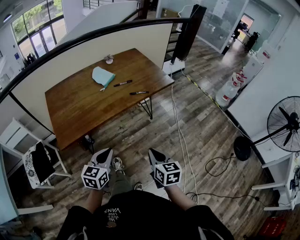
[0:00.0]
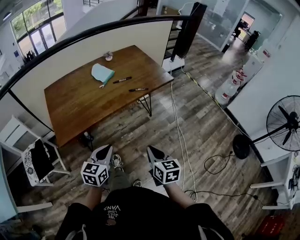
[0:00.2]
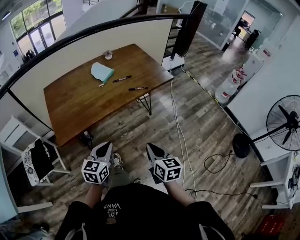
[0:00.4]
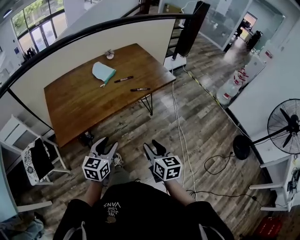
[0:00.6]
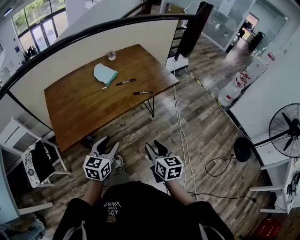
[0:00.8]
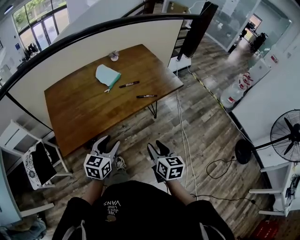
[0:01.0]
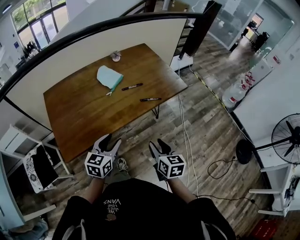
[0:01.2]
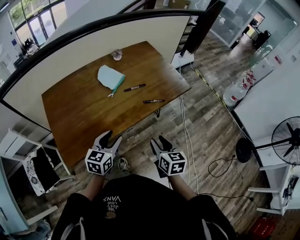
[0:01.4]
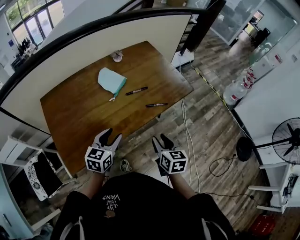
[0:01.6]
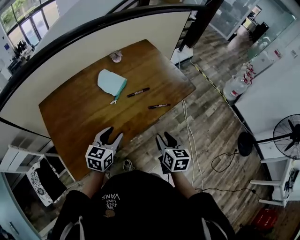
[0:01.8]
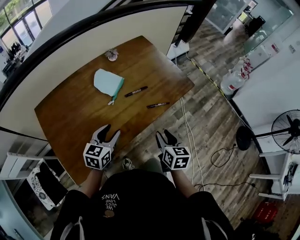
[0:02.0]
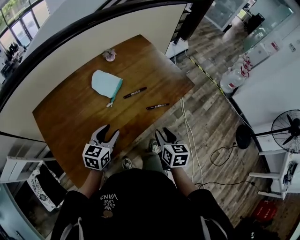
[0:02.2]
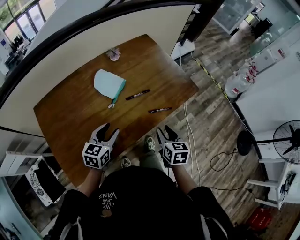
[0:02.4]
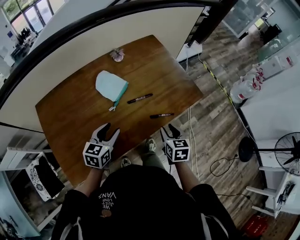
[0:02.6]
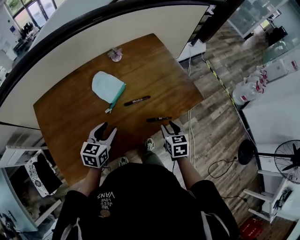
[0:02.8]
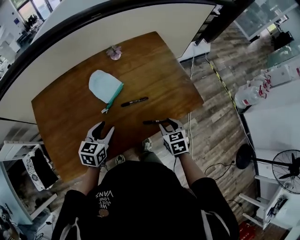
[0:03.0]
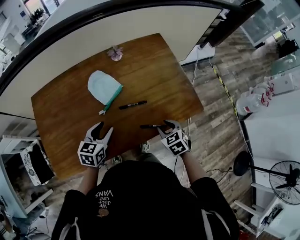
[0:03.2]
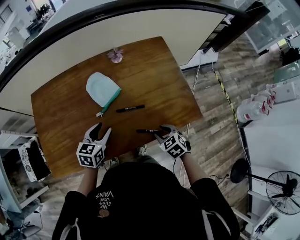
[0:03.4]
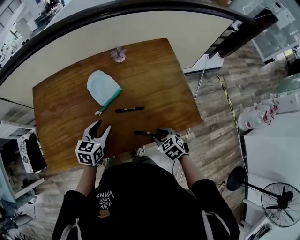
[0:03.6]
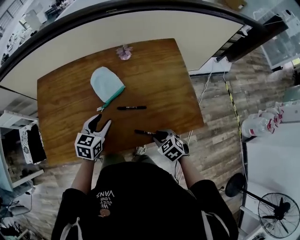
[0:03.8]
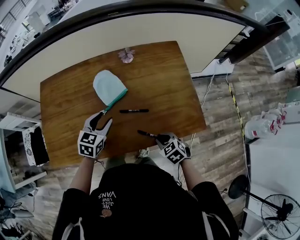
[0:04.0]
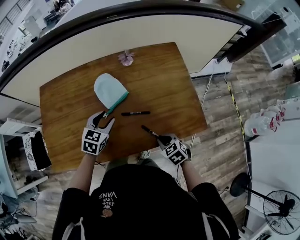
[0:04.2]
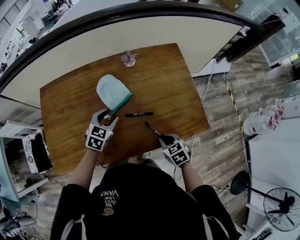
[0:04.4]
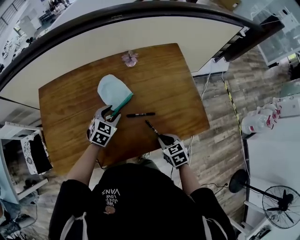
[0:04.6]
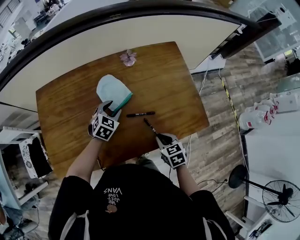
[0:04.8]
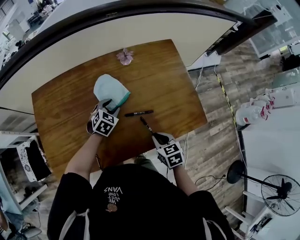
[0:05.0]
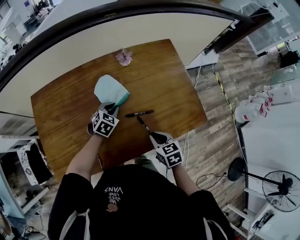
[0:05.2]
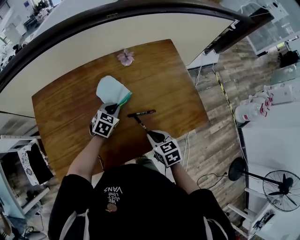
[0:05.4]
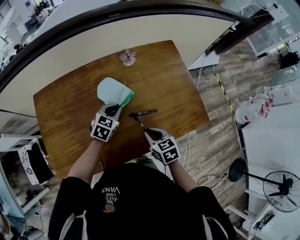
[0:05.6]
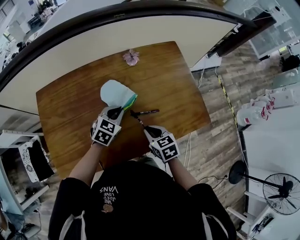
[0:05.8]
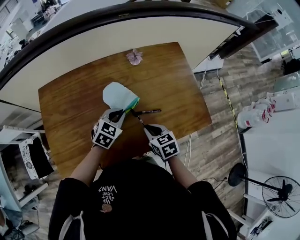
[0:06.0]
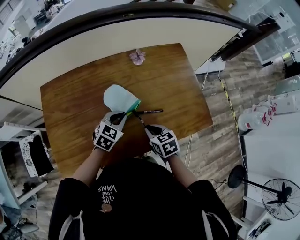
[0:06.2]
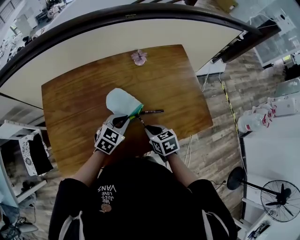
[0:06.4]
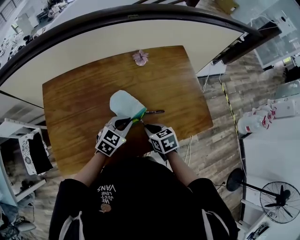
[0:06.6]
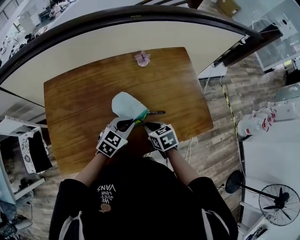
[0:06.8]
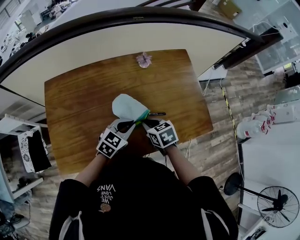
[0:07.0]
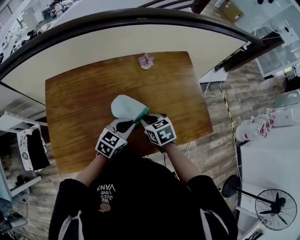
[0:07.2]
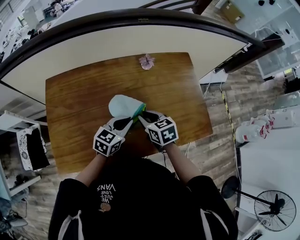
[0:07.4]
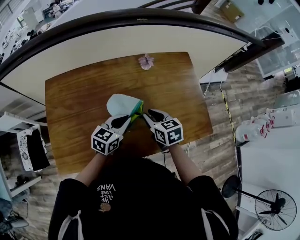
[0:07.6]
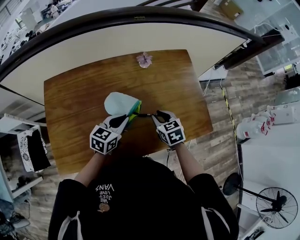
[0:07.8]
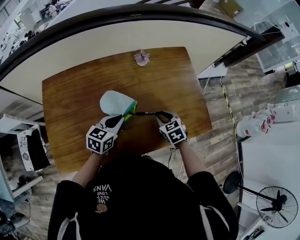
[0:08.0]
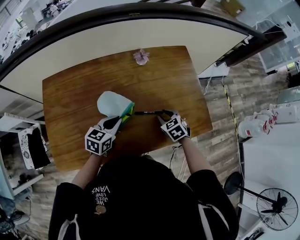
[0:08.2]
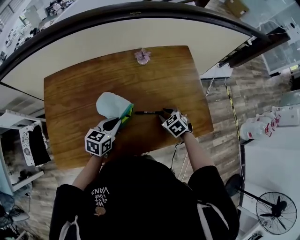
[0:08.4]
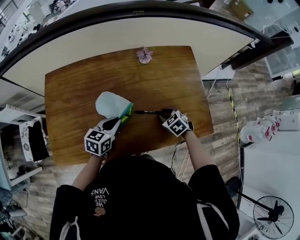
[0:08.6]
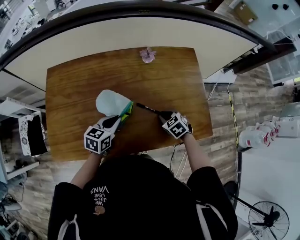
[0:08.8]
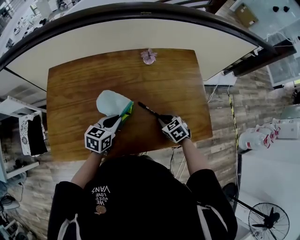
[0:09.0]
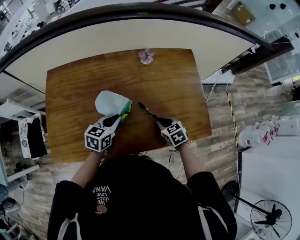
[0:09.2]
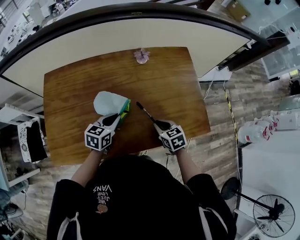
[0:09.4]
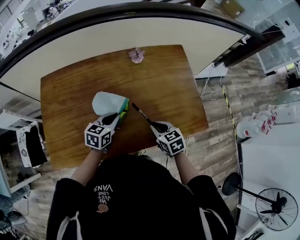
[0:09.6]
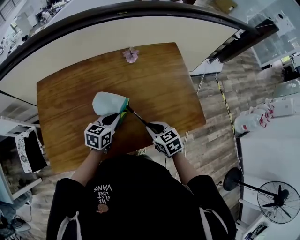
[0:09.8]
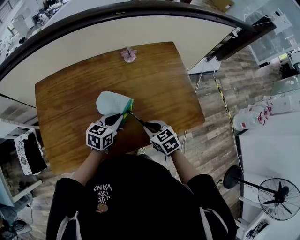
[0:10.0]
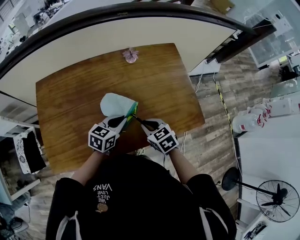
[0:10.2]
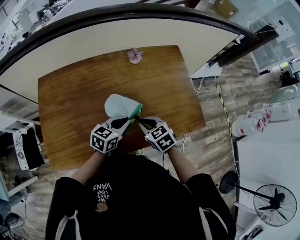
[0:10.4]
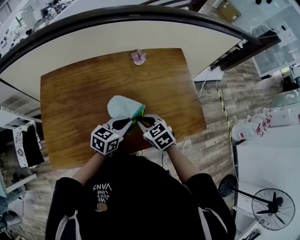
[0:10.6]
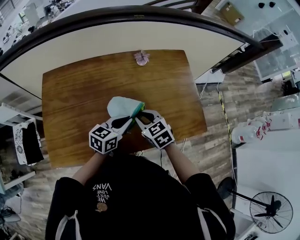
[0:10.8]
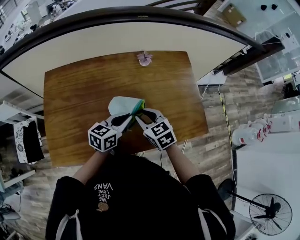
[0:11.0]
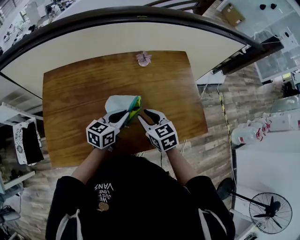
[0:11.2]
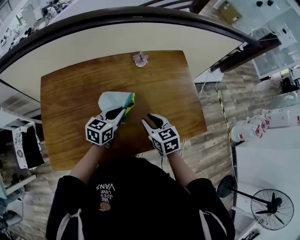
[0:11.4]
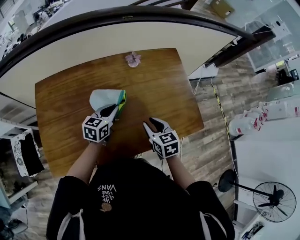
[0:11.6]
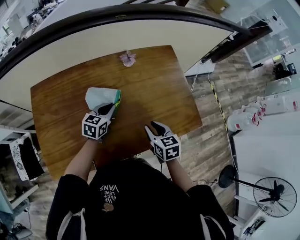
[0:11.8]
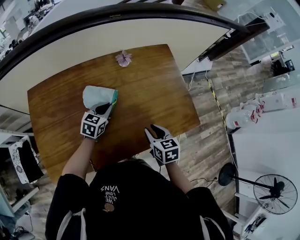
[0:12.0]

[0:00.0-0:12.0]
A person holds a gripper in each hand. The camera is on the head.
0:00.0 to 0:01.6: The two grippers go roughly 25 cm forward. The right gripper opens up, while the left gripper opens up.
0:01.6 to 0:03.0: The right gripper shifts about 25 cm forward and downward, and swivels roughly 30 degrees; the left gripper travels forward by approximately 15 cm.
0:03.0 to 0:04.4: The right gripper changes its angle by some 30 degrees, and closes up. The left gripper moves about 10 cm, and changes its angle by roughly 20 degrees.
0:04.4 to 0:06.0: The left gripper closes up, while the right gripper moves to the left and upward, roughly 15 cm.
0:06.0 to 0:07.6: The right gripper goes some 5 cm forward. The left gripper moves about 5 cm, and changes its angle by approximately 30 degrees.
0:07.6 to 0:09.0: The right gripper moves downward and to the right, approximately 15 cm, and changes its angle by some 30 degrees; the left gripper ends up some 5 cm from where it was.
0:09.0 to 0:10.4: The right gripper is displaced upward and to the left by some 10 cm. The left gripper moves to the right, approximately 5 cm.
0:10.4 to 0:12.0: The left gripper is displaced forward and to the left by approximately 10 cm. The right gripper goes about 5 cm to the right, and swivels about 30 degrees.

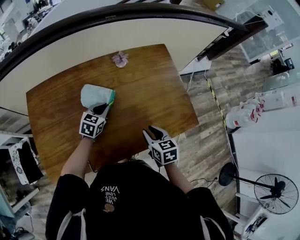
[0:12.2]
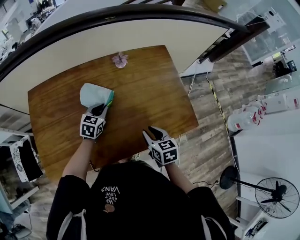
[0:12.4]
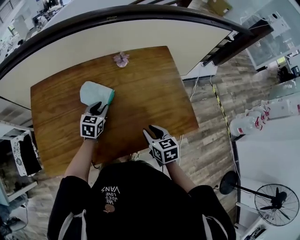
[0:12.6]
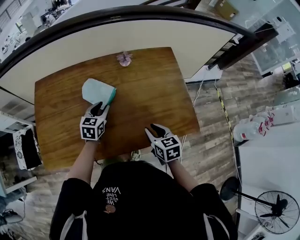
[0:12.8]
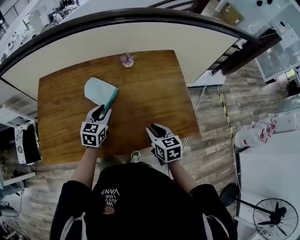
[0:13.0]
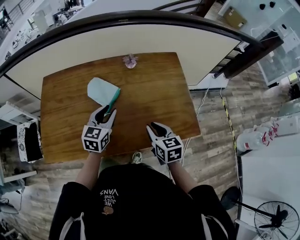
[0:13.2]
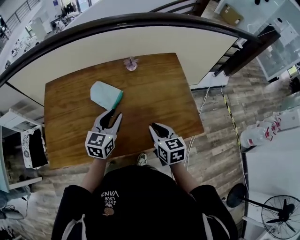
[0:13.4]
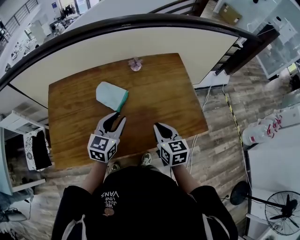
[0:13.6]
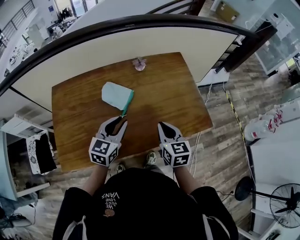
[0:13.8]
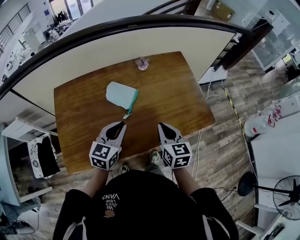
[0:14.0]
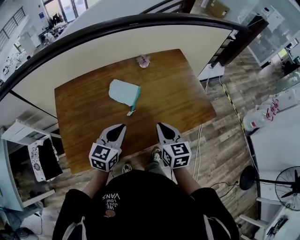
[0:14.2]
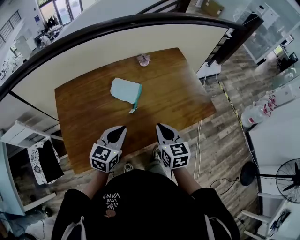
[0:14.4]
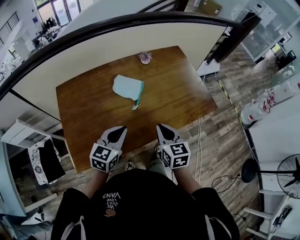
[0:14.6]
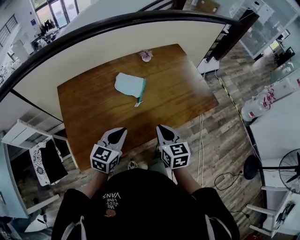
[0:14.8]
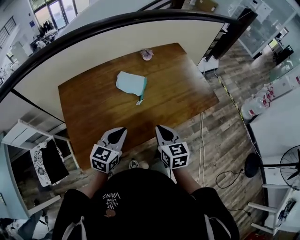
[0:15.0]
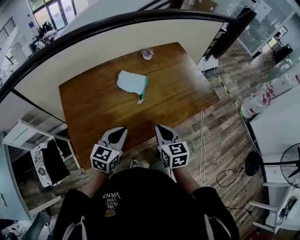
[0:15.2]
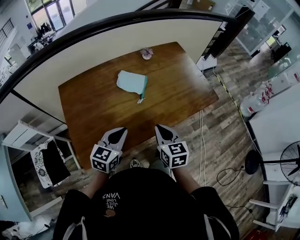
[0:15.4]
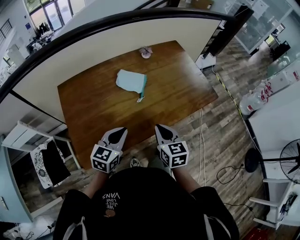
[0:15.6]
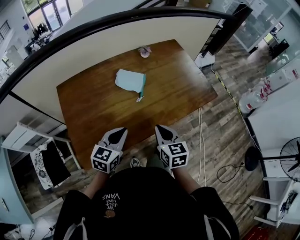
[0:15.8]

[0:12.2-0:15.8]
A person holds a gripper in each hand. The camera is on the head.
0:12.2 to 0:14.0: The right gripper goes some 10 cm upward. Meanwhile the left gripper goes approximately 20 cm backward and upward.
0:14.0 to 0:15.8: Both grippers travel together backward and to the left, some 15 cm.

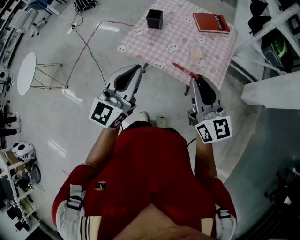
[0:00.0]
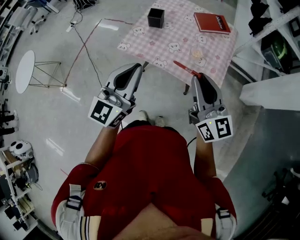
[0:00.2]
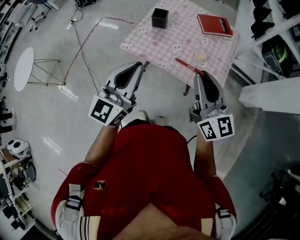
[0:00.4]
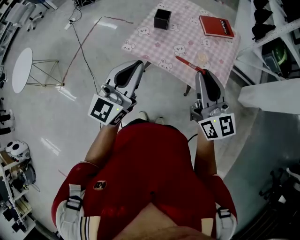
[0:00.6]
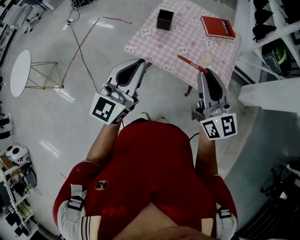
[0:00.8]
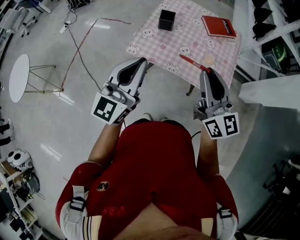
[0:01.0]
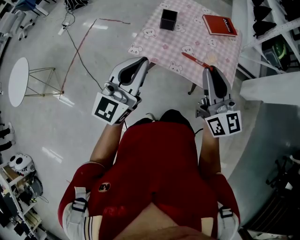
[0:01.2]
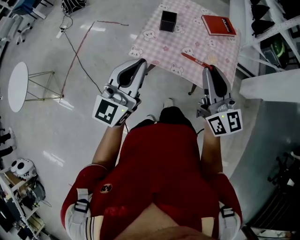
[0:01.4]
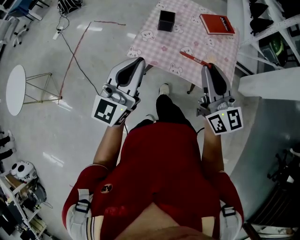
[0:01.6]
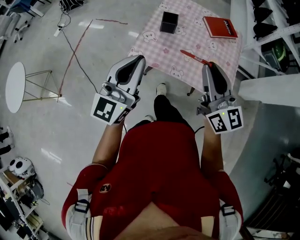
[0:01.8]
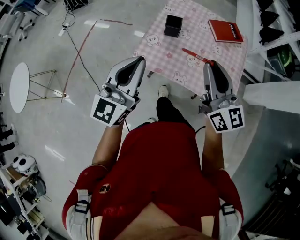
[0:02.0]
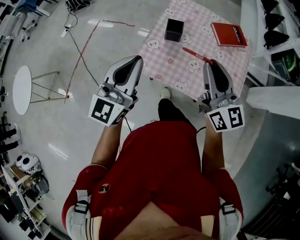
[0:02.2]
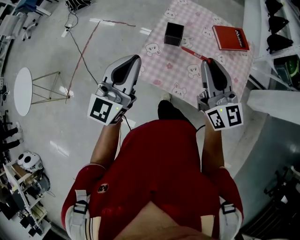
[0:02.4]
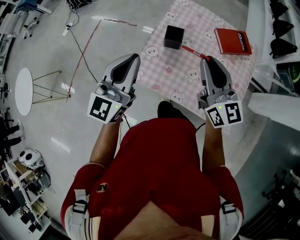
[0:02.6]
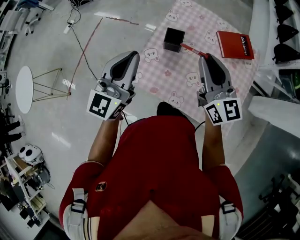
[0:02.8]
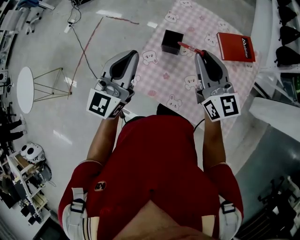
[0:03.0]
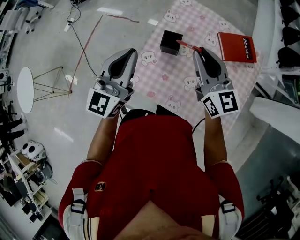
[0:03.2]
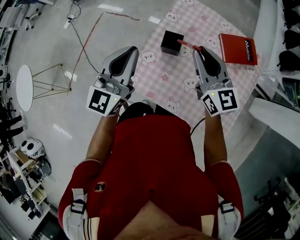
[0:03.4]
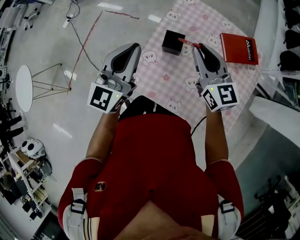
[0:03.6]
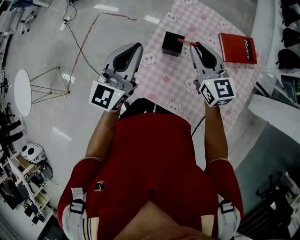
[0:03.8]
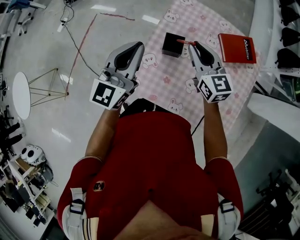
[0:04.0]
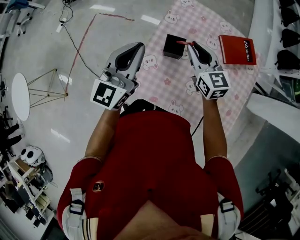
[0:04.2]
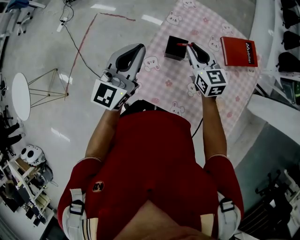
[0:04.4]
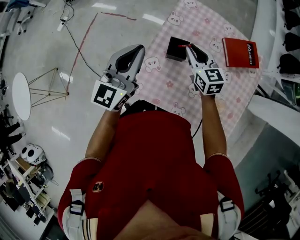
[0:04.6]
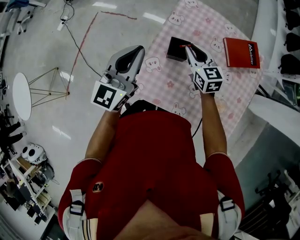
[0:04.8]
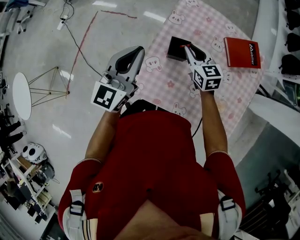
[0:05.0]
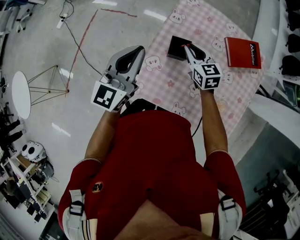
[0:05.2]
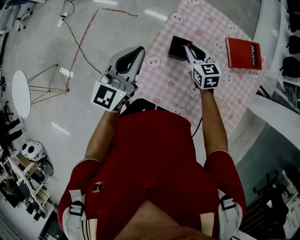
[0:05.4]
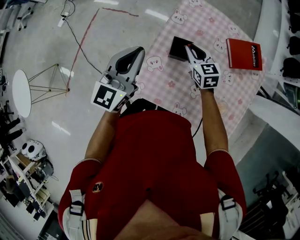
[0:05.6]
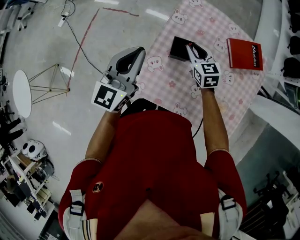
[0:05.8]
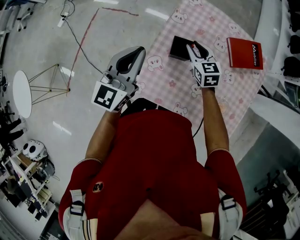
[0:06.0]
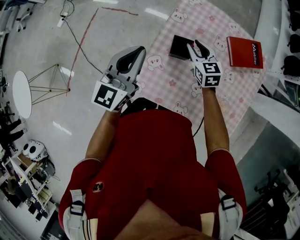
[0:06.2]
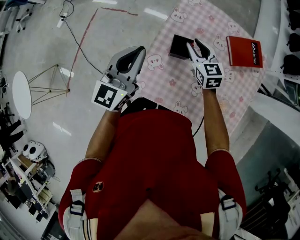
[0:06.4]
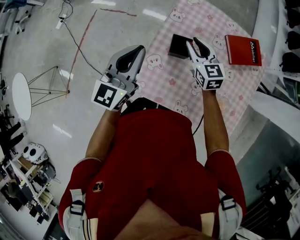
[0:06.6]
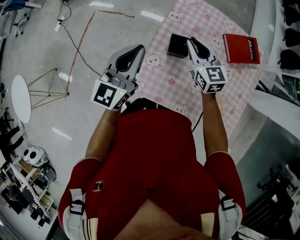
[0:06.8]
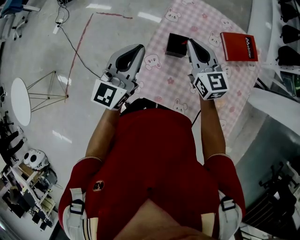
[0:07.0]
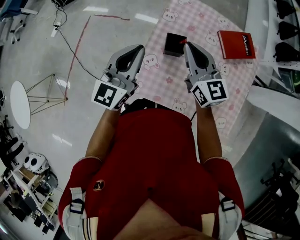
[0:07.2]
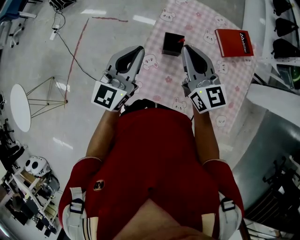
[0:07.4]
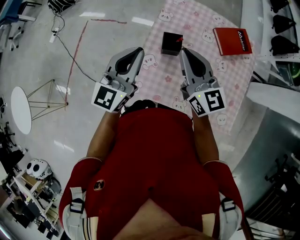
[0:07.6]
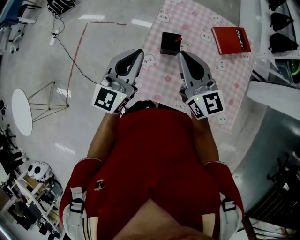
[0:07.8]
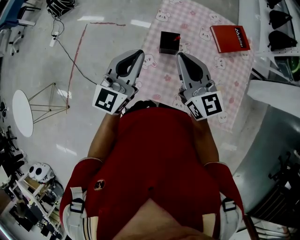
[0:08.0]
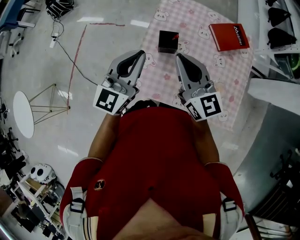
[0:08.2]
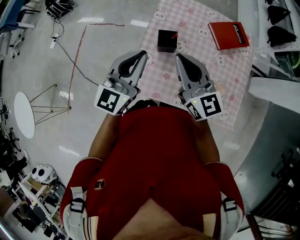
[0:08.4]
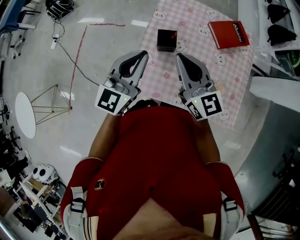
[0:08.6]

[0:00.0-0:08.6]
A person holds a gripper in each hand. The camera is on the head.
0:00.0 to 0:01.4: The right gripper travels to the left and forward by some 15 cm. The left gripper is displaced to the left by approximately 15 cm.
0:01.4 to 0:02.8: Both grippers move forward, approximately 25 cm.
0:02.8 to 0:04.4: The left gripper travels forward by about 10 cm. The right gripper moves downward and forward, about 20 cm, and changes its angle by approximately 20 degrees.
0:04.4 to 0:05.8: The right gripper goes approximately 10 cm downward.
0:05.8 to 0:07.2: The right gripper moves upward and backward, roughly 20 cm, and changes its angle by approximately 30 degrees.
0:07.2 to 0:08.6: The right gripper moves backward, some 10 cm. Meanwhile the left gripper shifts by approximately 5 cm.
